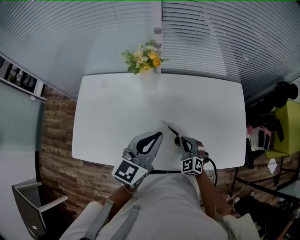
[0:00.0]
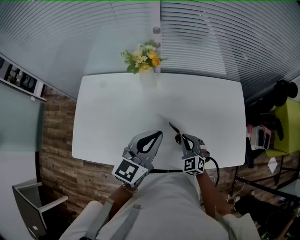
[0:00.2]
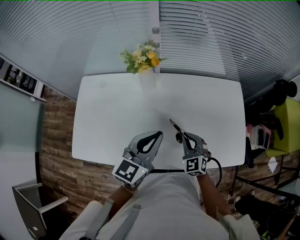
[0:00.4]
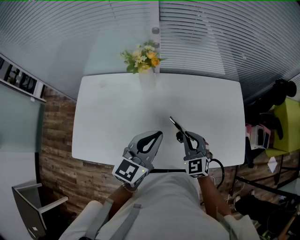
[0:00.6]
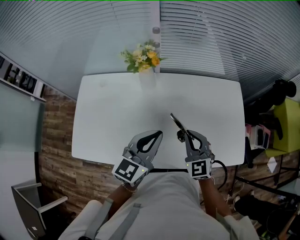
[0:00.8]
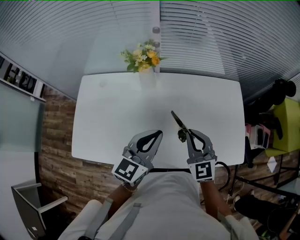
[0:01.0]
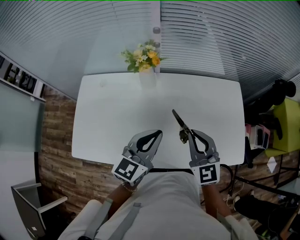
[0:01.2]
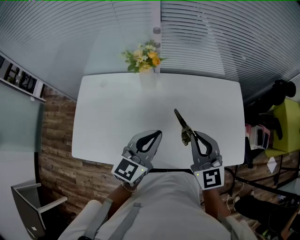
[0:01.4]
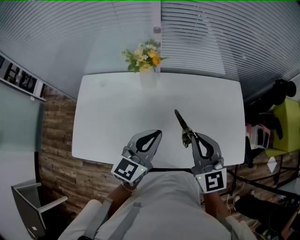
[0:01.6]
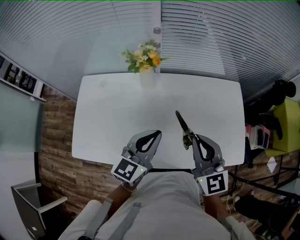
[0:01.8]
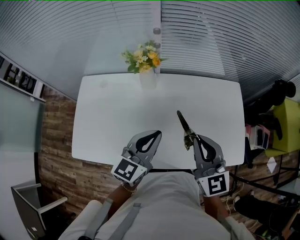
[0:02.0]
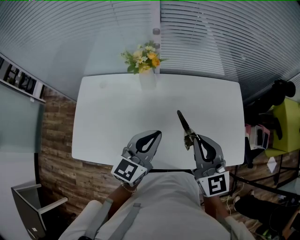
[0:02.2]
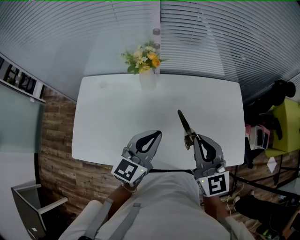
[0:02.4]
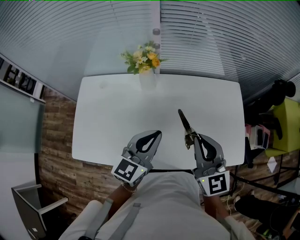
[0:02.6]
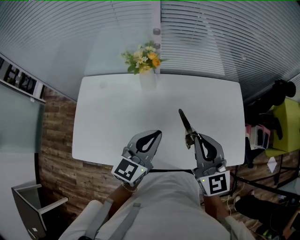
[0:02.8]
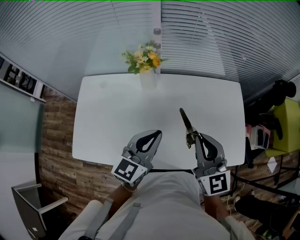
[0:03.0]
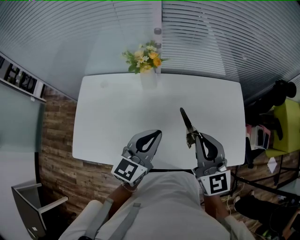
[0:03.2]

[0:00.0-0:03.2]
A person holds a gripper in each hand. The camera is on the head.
0:00.0 to 0:01.6: The right gripper goes roughly 30 cm upward, and turns by some 40 degrees.
0:01.6 to 0:03.2: There are only small adjustments of the grippers.

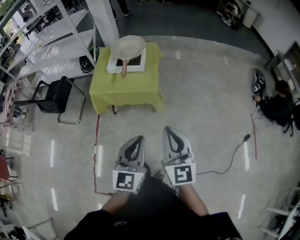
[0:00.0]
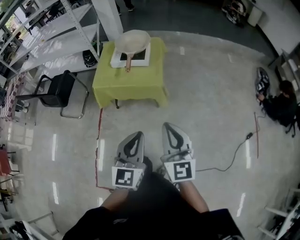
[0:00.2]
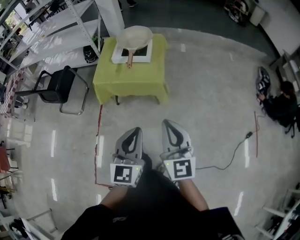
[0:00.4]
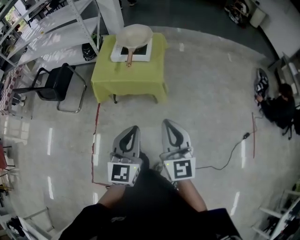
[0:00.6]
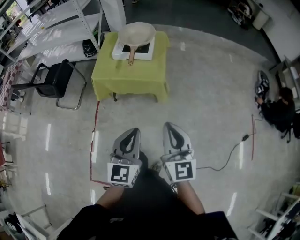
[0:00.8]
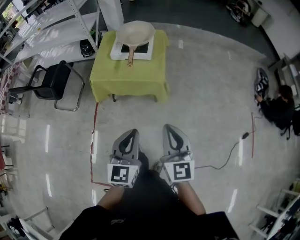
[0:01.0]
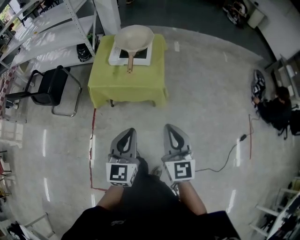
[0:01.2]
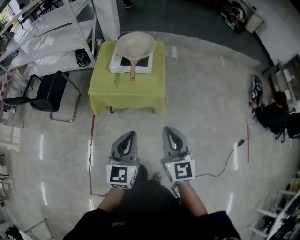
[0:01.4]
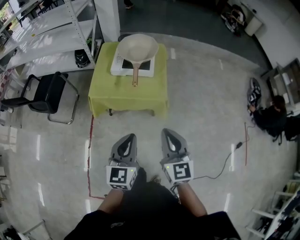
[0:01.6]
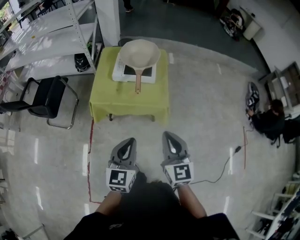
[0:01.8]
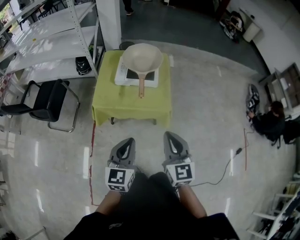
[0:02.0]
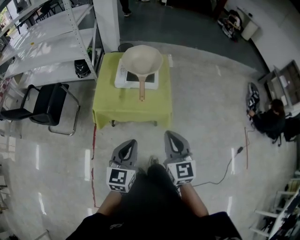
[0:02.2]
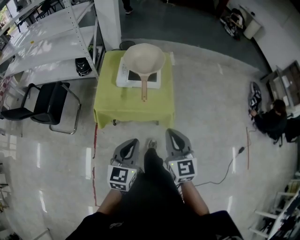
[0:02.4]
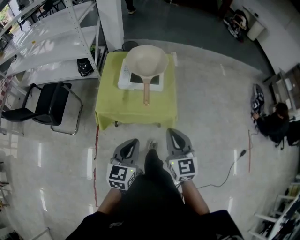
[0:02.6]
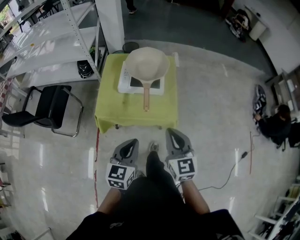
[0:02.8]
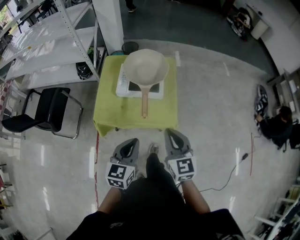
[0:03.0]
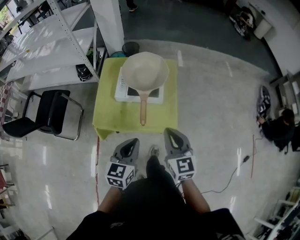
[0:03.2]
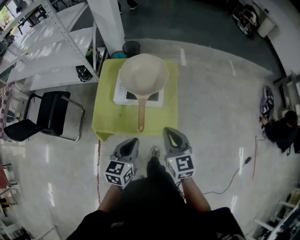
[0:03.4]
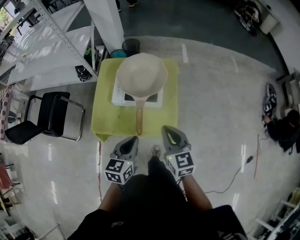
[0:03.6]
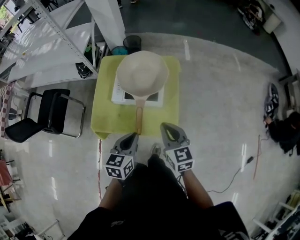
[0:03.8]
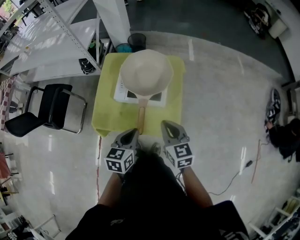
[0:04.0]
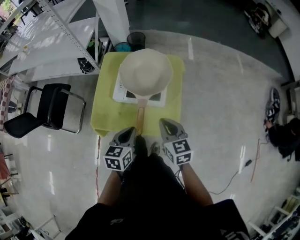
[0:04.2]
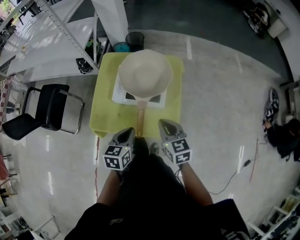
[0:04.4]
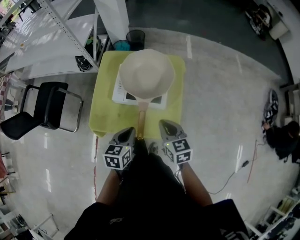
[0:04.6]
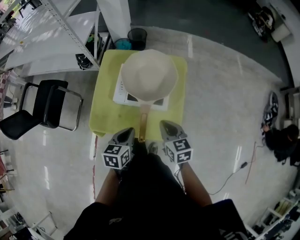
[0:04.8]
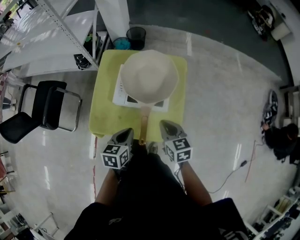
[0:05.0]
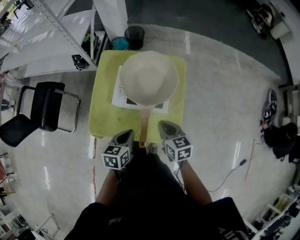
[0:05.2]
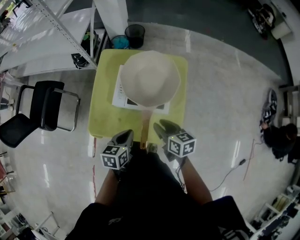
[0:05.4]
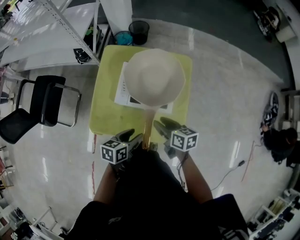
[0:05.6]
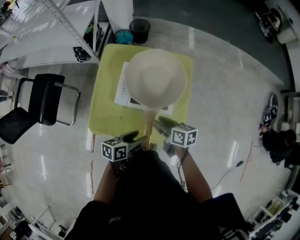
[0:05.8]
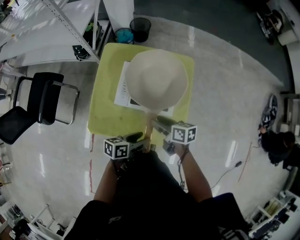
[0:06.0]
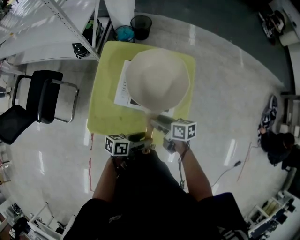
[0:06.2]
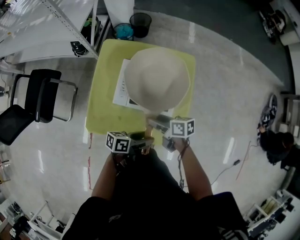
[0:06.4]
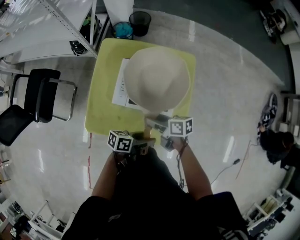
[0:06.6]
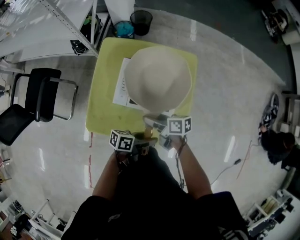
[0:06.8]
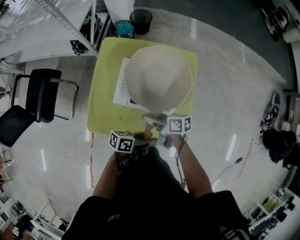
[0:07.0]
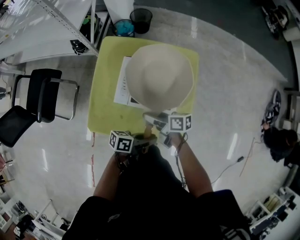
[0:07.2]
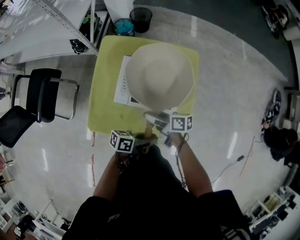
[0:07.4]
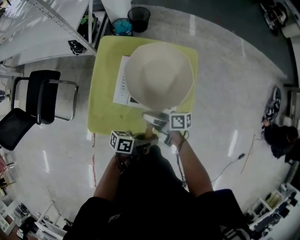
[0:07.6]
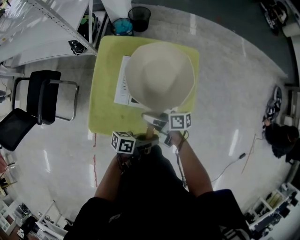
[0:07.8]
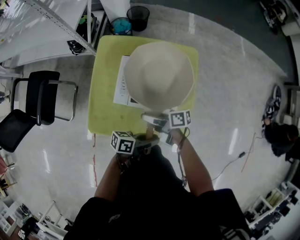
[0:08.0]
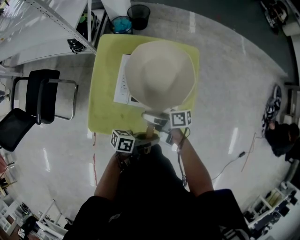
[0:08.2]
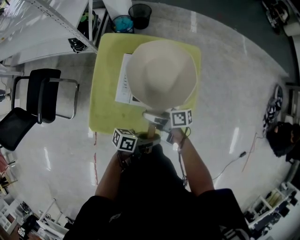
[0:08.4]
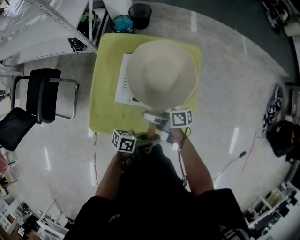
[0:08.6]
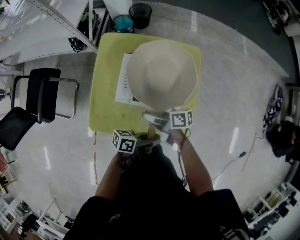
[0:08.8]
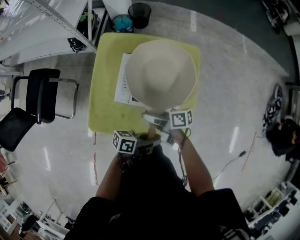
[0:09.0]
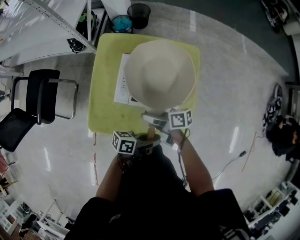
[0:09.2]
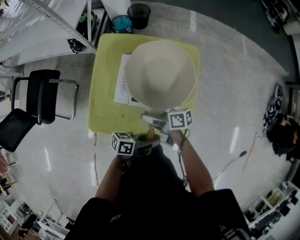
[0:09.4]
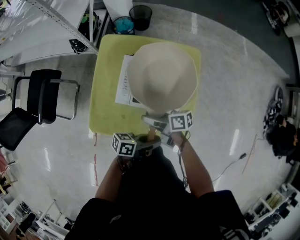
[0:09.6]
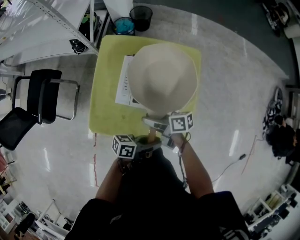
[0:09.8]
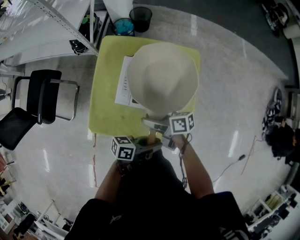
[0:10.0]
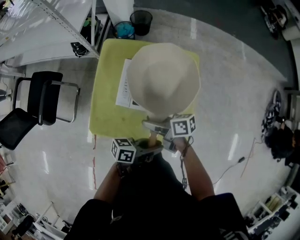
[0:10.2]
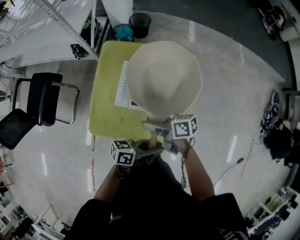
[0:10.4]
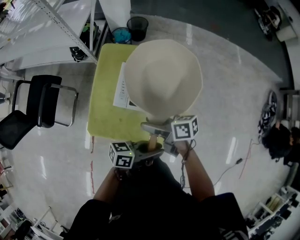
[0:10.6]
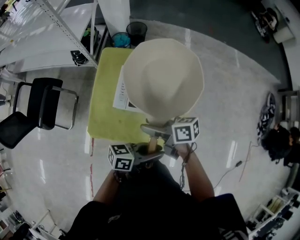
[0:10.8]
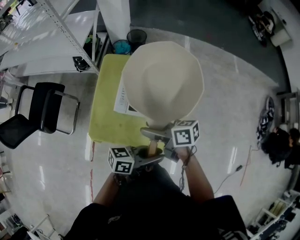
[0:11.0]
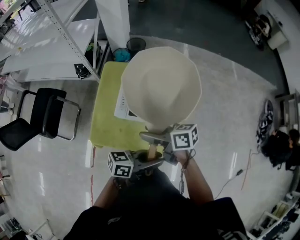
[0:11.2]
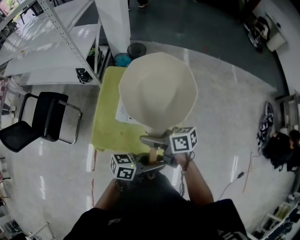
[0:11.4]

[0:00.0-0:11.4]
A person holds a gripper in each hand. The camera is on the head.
0:00.0 to 0:01.4: The two grippers go roughly 15 cm forward and to the left.
0:01.4 to 0:02.8: Both grippers move forward and to the left, roughly 20 cm.
0:02.8 to 0:04.2: The right gripper is displaced forward and downward by some 25 cm. The left gripper heads forward, covering about 20 cm.
0:04.2 to 0:05.6: Both grippers travel together downward and forward, some 10 cm. The left gripper swivels some 20 degrees, and opens up. Meanwhile the right gripper swivels some 30 degrees, and opens its fingers.
0:05.6 to 0:07.2: The left gripper shifts by roughly 10 cm, and changes its angle by some 40 degrees; the right gripper shifts by approximately 10 cm, and rotates roughly 30 degrees.
0:07.2 to 0:10.0: The grippers stay close to where they were, moving slightly.
0:10.0 to 0:11.4: Both grippers travel together upward, about 15 cm.

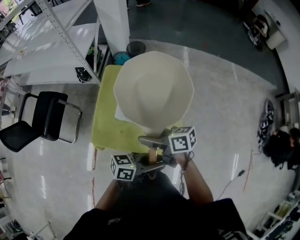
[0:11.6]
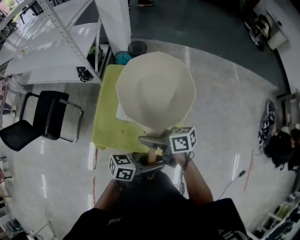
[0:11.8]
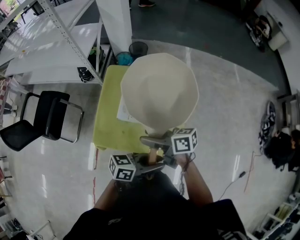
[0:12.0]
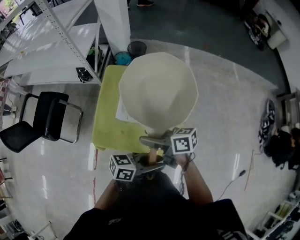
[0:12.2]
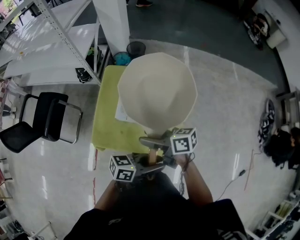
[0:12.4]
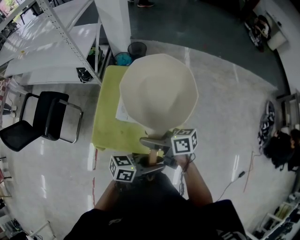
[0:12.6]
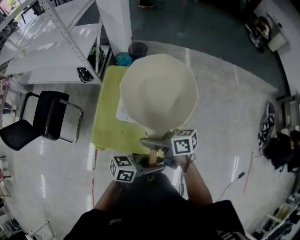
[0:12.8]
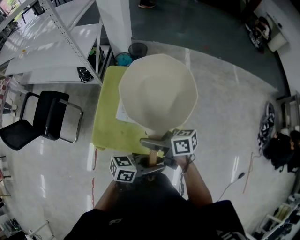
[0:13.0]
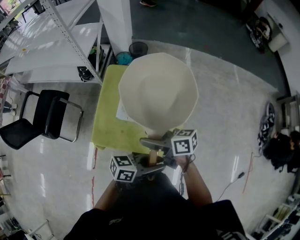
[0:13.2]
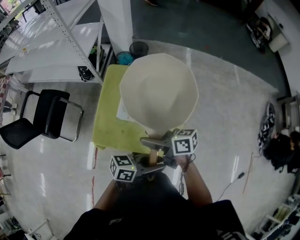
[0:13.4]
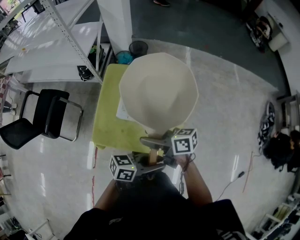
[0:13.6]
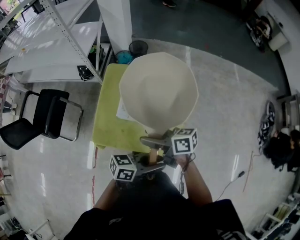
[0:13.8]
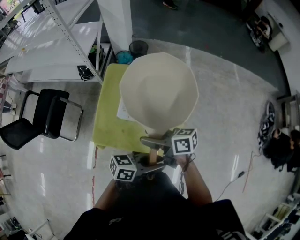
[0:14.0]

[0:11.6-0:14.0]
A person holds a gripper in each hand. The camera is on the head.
0:11.6 to 0:14.0: The two grippers keep their place.

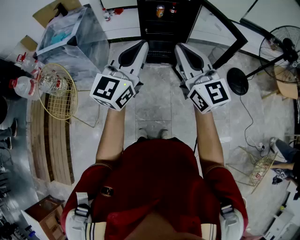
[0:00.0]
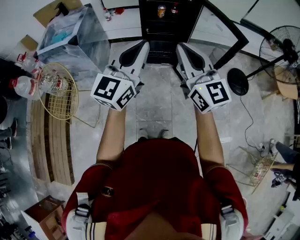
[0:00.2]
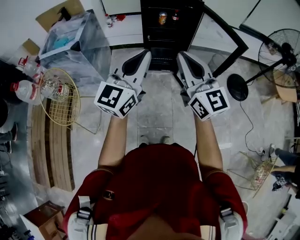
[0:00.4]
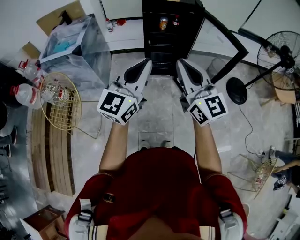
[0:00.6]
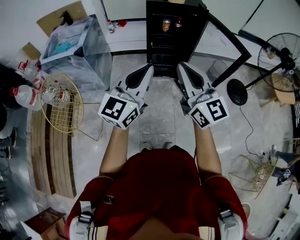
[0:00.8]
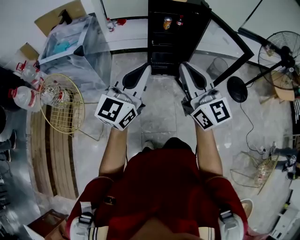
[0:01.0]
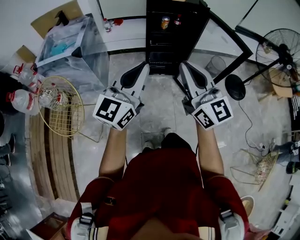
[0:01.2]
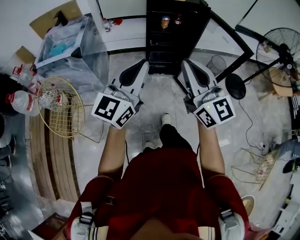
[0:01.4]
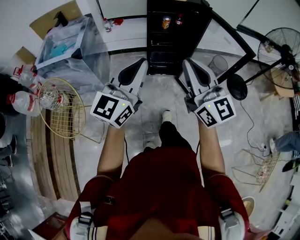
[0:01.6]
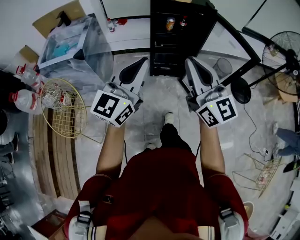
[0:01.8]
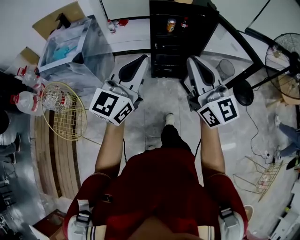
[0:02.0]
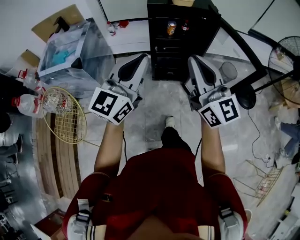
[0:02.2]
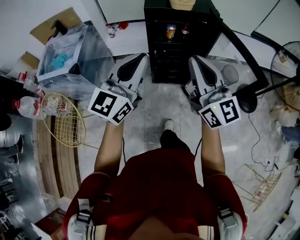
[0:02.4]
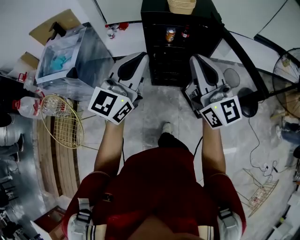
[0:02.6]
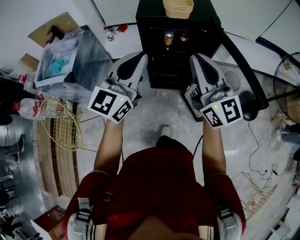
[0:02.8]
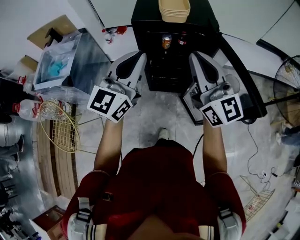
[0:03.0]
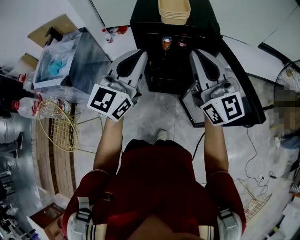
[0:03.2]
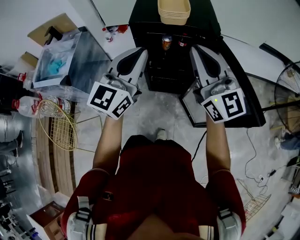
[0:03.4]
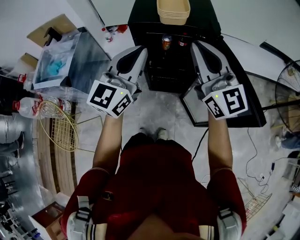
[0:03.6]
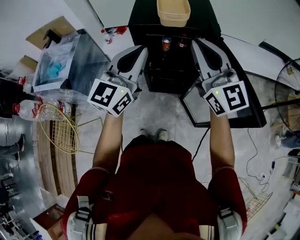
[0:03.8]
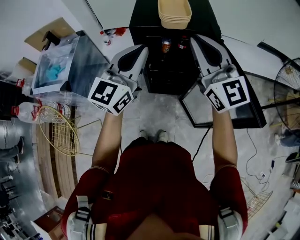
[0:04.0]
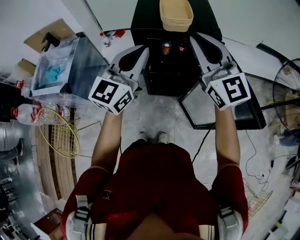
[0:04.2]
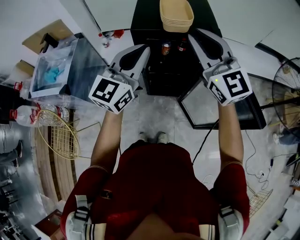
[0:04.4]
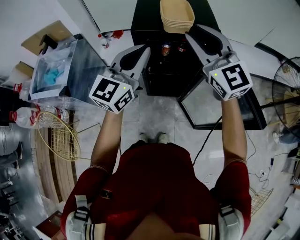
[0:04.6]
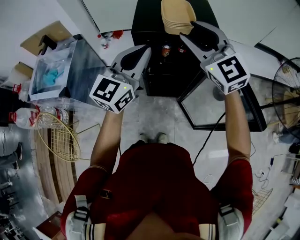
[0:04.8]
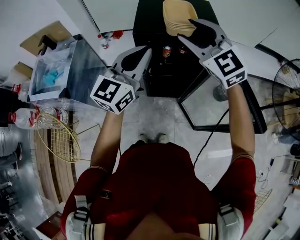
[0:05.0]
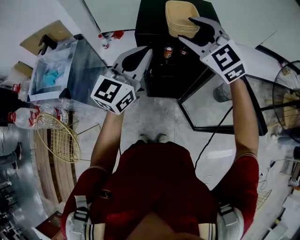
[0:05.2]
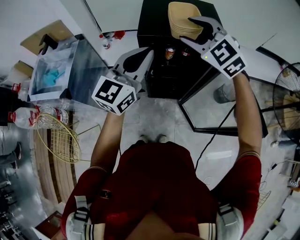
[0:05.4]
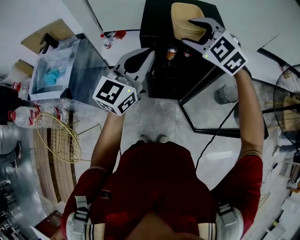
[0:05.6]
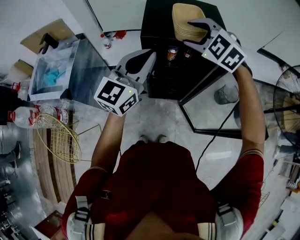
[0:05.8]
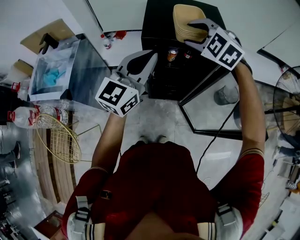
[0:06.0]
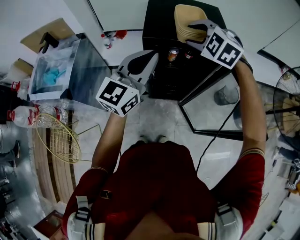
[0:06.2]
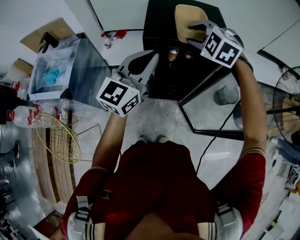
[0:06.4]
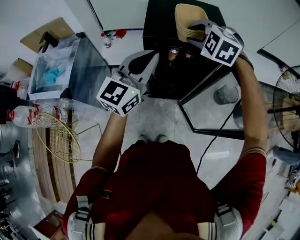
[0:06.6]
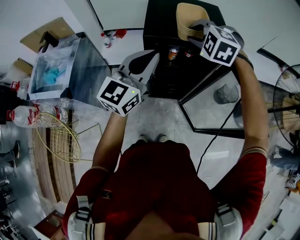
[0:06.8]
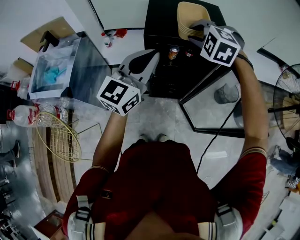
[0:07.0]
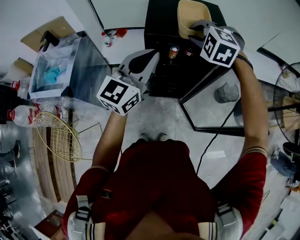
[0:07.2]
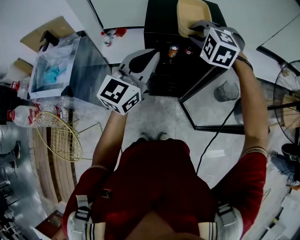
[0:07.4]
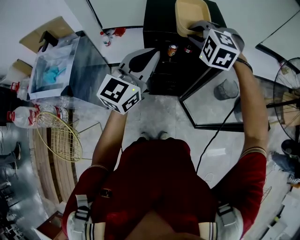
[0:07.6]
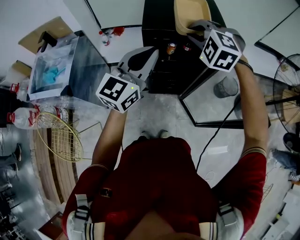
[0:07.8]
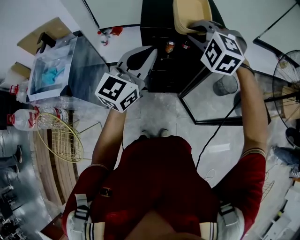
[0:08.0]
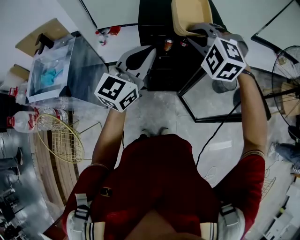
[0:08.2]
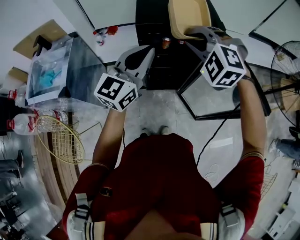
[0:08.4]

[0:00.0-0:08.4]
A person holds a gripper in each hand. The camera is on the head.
0:00.0 to 0:01.4: Both grippers travel together to the left, roughly 10 cm.
0:01.4 to 0:02.8: The right gripper moves forward and to the right, roughly 30 cm; the left gripper moves forward, approximately 30 cm.
0:02.8 to 0:04.2: Both grippers travel together forward, roughly 10 cm.
0:04.2 to 0:05.6: The left gripper goes some 5 cm forward. The right gripper travels forward, downward and to the left by roughly 15 cm, tips its fingers downward by approximately 40 degrees, and opens up.
0:05.6 to 0:07.0: The right gripper rotates roughly 20 degrees, and closes its fingers.
0:07.0 to 0:08.4: The right gripper is displaced backward by about 10 cm.
